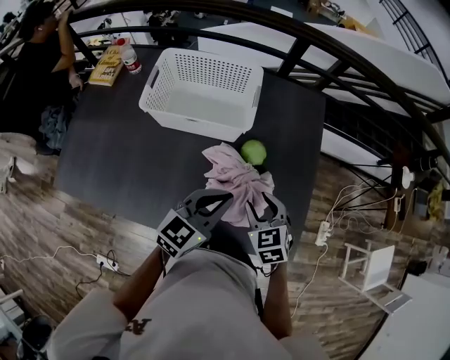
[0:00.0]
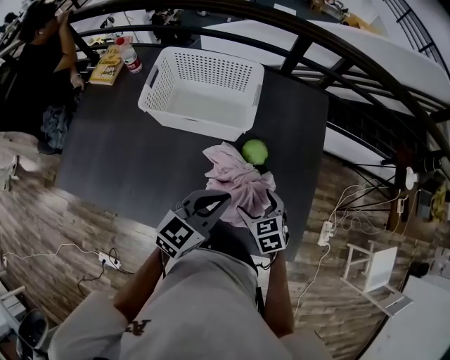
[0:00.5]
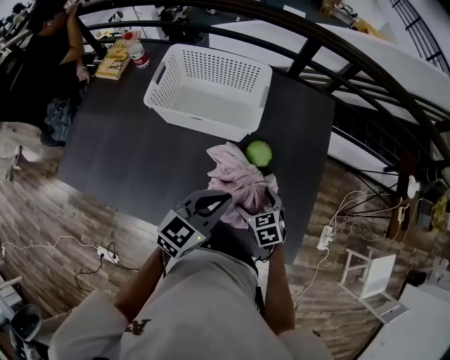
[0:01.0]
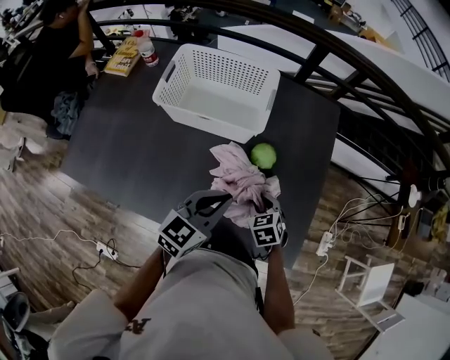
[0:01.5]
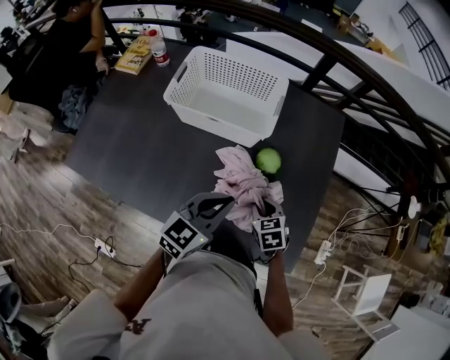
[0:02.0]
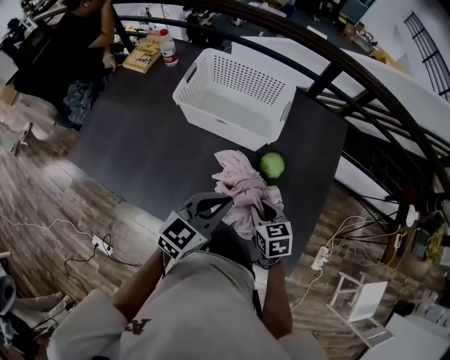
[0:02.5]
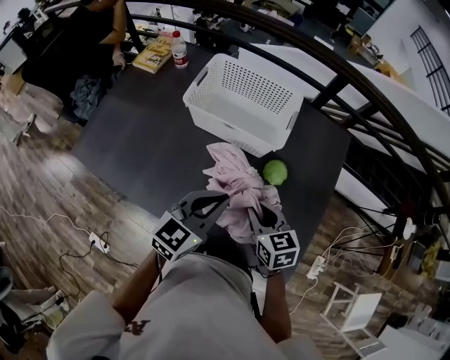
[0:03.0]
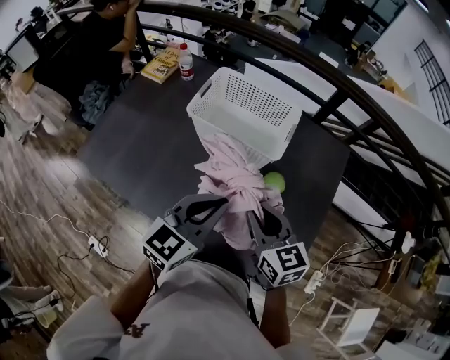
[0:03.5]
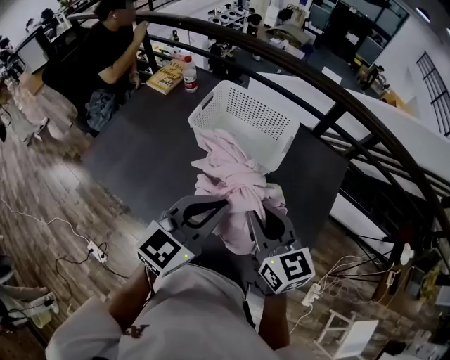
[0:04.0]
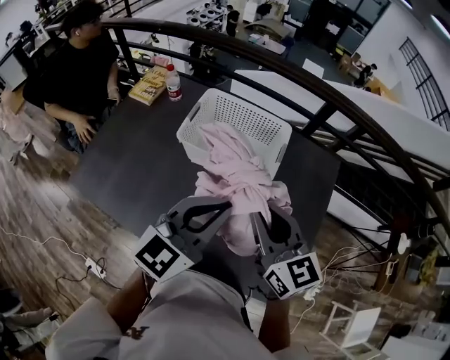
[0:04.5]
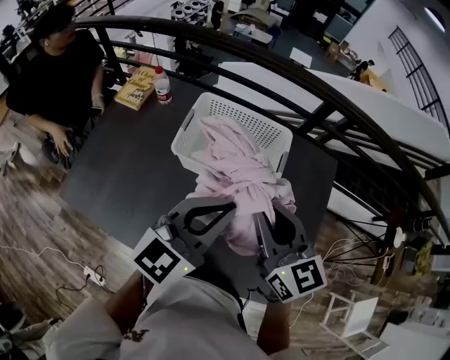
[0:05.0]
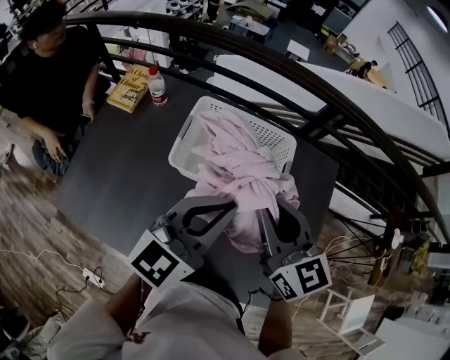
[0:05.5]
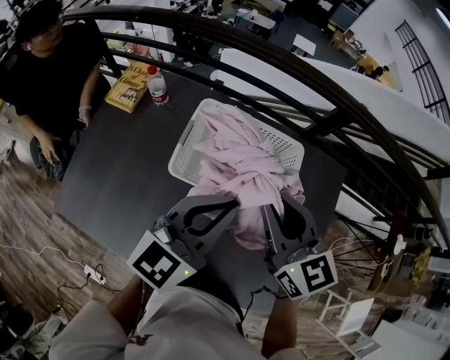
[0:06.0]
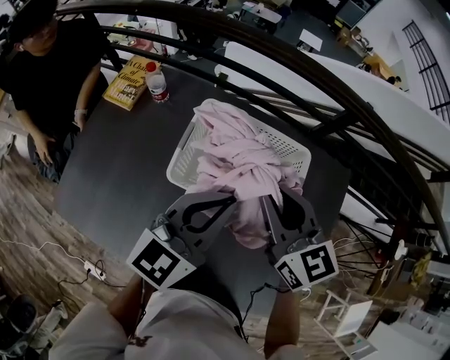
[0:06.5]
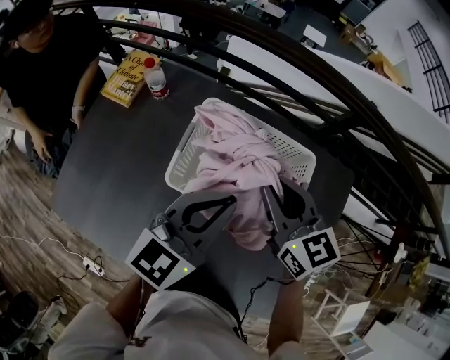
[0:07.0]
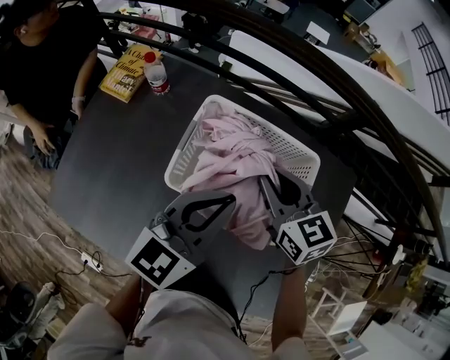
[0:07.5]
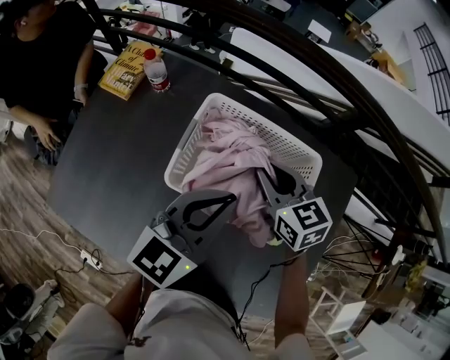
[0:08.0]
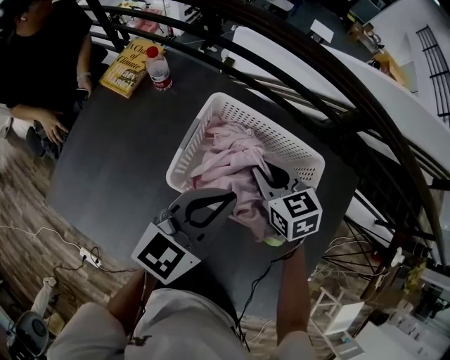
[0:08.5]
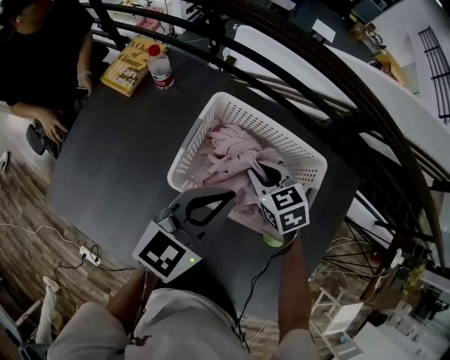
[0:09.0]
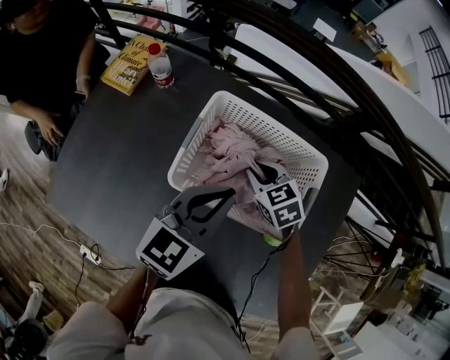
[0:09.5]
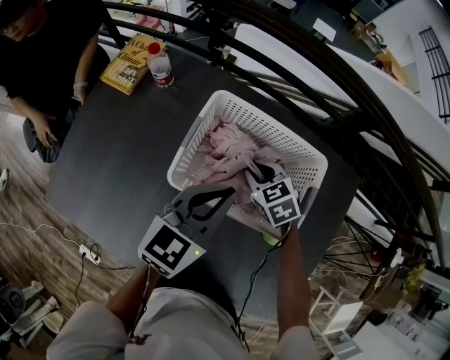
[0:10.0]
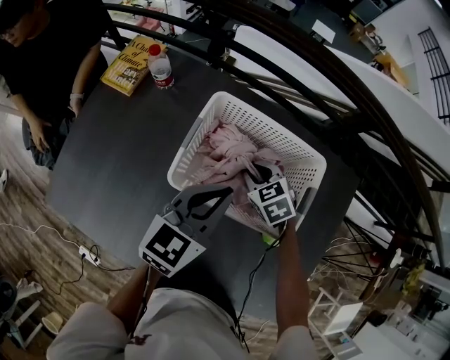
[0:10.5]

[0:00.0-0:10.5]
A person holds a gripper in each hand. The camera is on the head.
0:00.0 to 0:02.0: The right gripper shifts approximately 10 cm downward, and opens, then closes again.
0:02.0 to 0:04.0: The right gripper goes approximately 25 cm upward, and tilts its fingers approximately 40 degrees upward, while the left gripper shifts approximately 15 cm upward.
0:04.0 to 0:06.5: Both grippers move forward, some 25 cm.
0:06.5 to 0:08.5: The right gripper shifts approximately 20 cm downward and forward, and rotates some 20 degrees; the left gripper moves downward, approximately 5 cm.
0:08.5 to 0:10.5: The right gripper is displaced downward by some 10 cm.

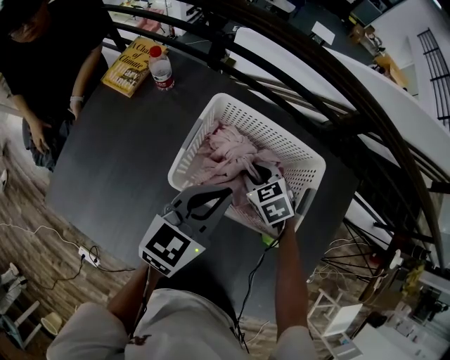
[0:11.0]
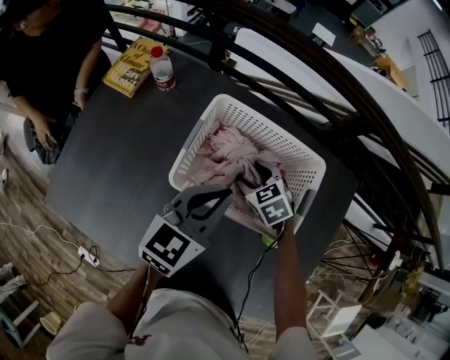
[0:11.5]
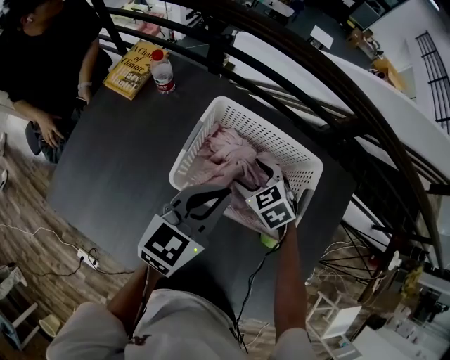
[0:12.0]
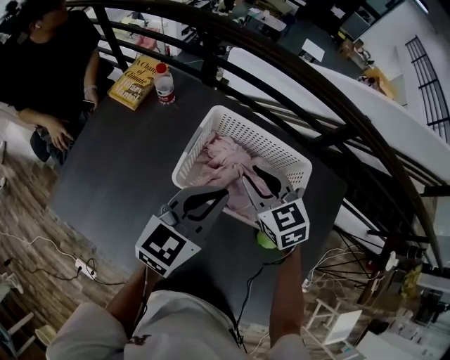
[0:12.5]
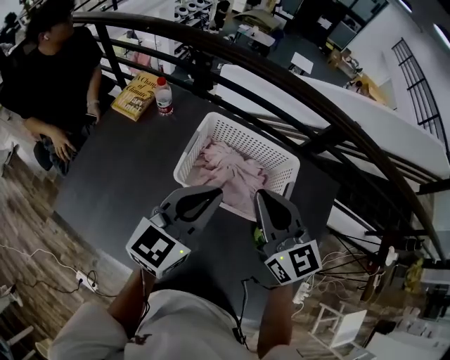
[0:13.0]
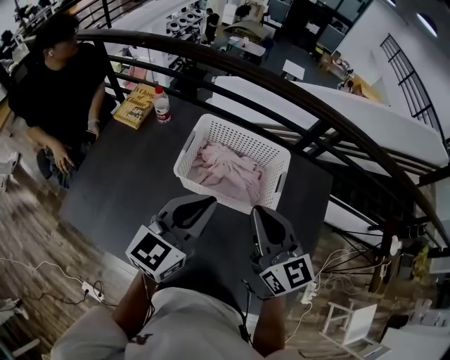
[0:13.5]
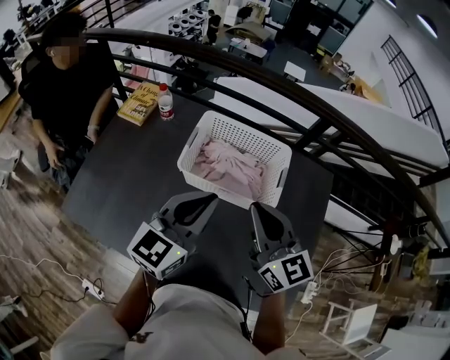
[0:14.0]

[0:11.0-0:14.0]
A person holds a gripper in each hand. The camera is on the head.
0:11.0 to 0:12.5: The left gripper shifts roughly 5 cm upward. Meanwhile the right gripper travels upward by about 15 cm, changes its angle by roughly 20 degrees, and opens, then closes once more.
0:12.5 to 0:14.0: The left gripper goes approximately 15 cm backward and upward. The right gripper shifts approximately 25 cm backward and upward, and points its fingers roughly 30 degrees further upward.

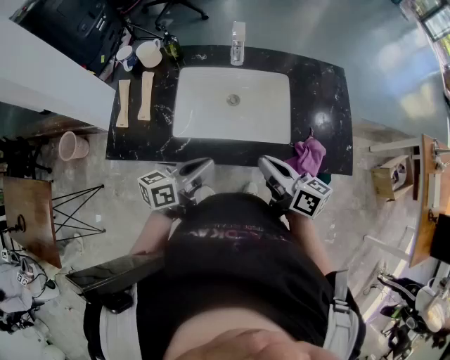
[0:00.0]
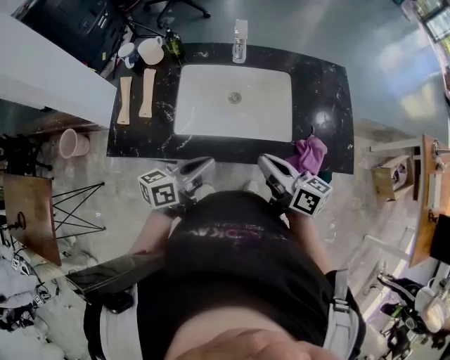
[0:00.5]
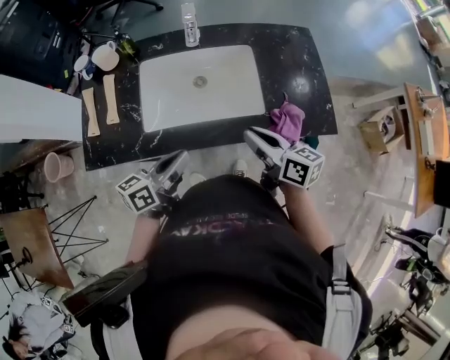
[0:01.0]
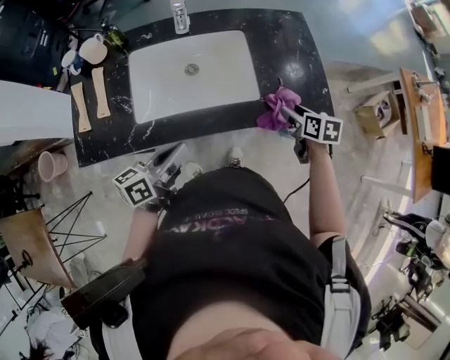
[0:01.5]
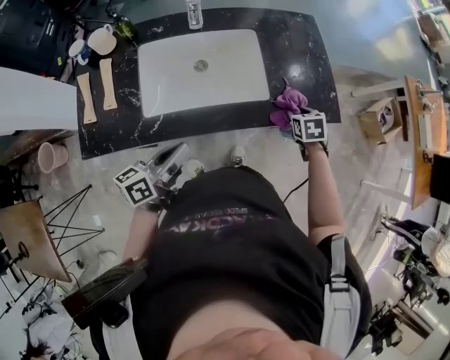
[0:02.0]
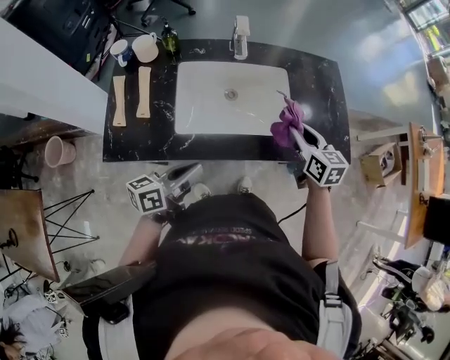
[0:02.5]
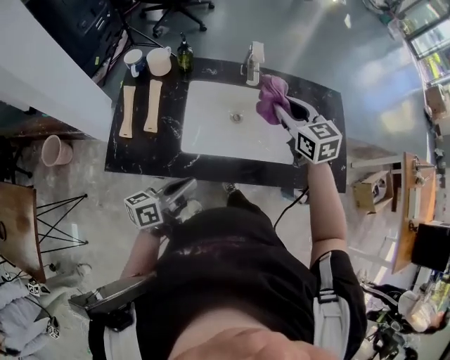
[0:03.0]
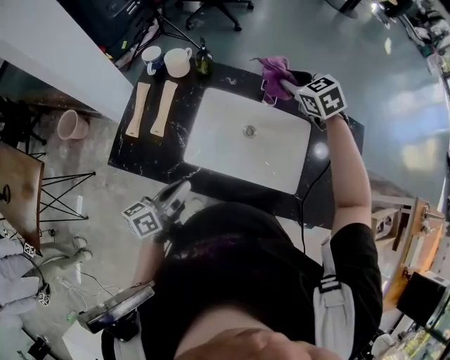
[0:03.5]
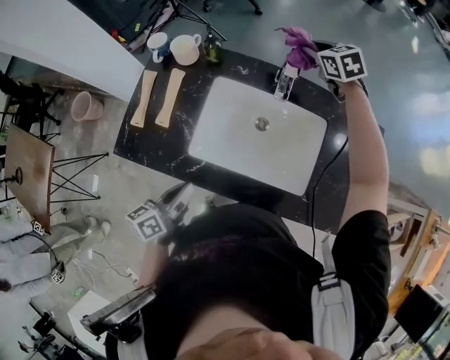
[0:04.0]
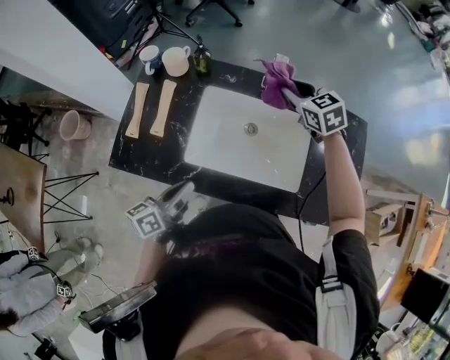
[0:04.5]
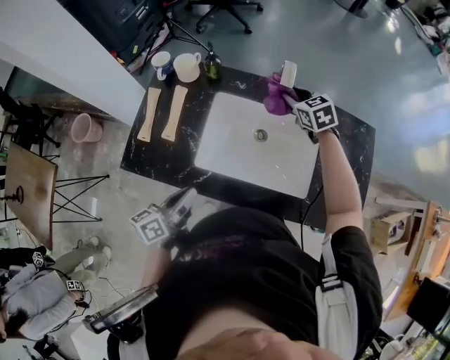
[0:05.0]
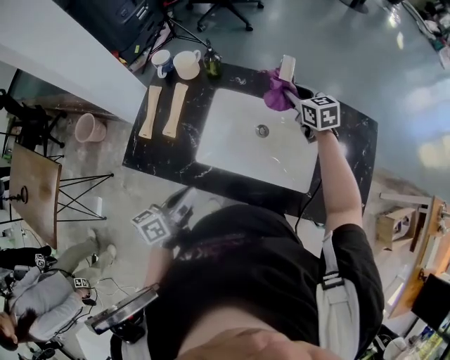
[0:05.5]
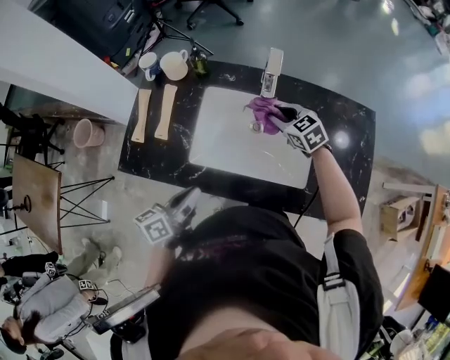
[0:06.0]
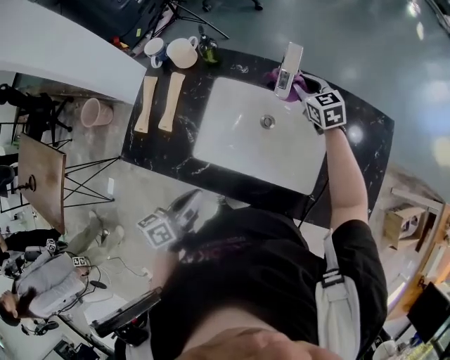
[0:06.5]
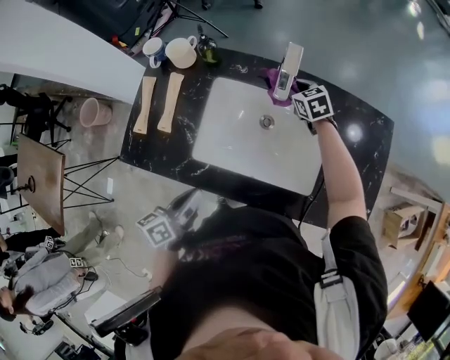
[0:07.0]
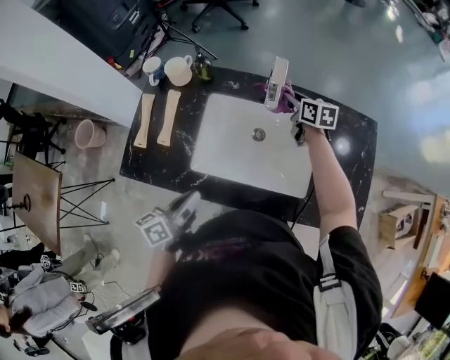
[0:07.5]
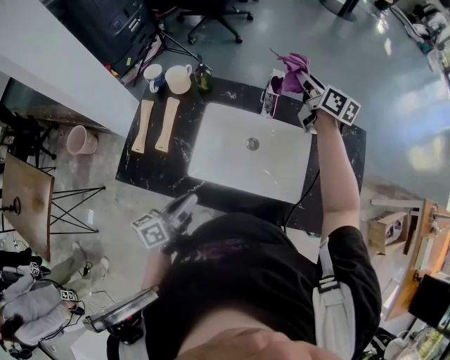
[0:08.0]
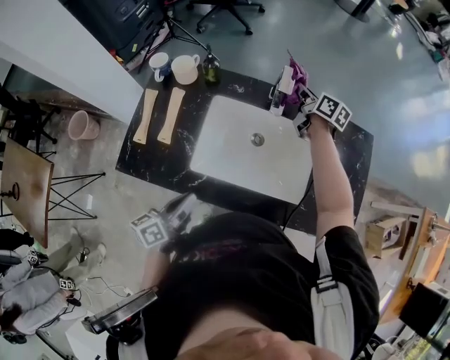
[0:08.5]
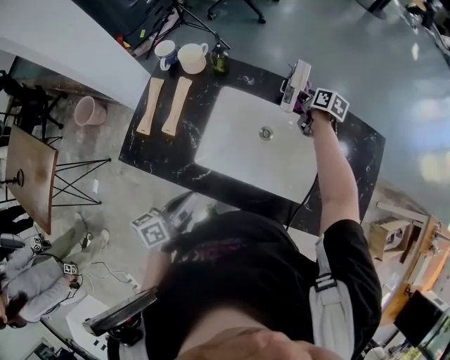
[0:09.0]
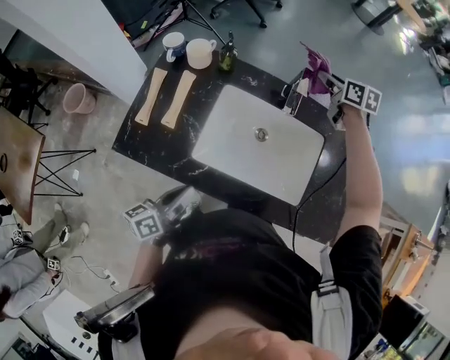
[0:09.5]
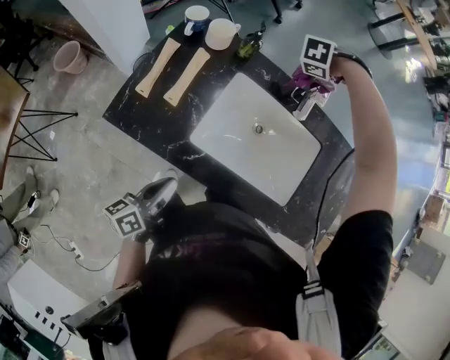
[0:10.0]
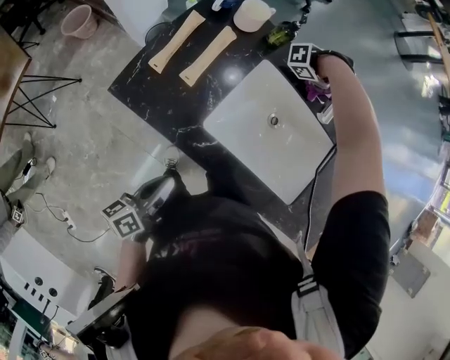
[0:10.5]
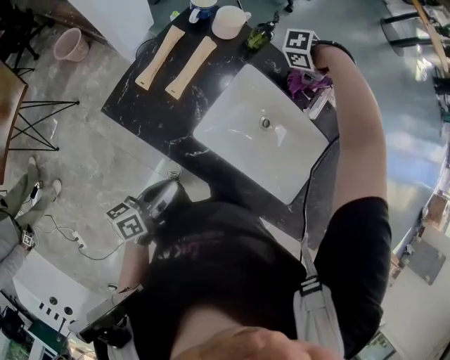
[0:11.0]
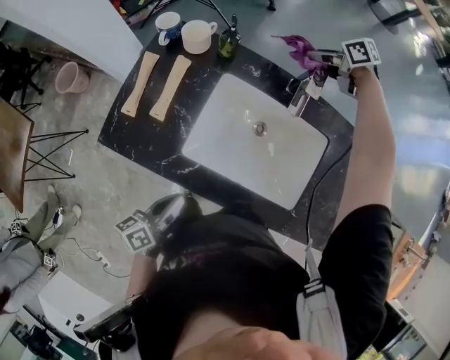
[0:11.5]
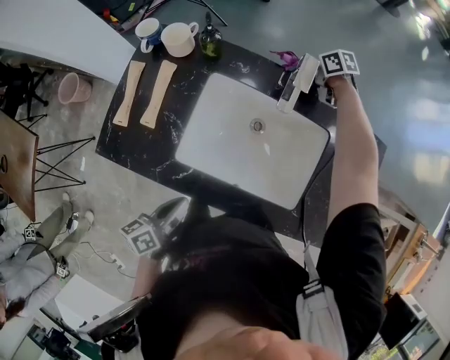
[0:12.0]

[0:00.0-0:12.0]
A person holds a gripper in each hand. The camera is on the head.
0:00.0 to 0:02.0: The right gripper changes place by approximately 30 cm, tips its fingers downward by approximately 50 degrees, and opens its fingers.
0:02.0 to 0:04.0: The right gripper ends up roughly 60 cm from where it was, and changes its angle by some 50 degrees, while the left gripper changes place by about 10 cm, and changes its angle by about 30 degrees.
0:04.0 to 0:06.0: The right gripper shifts approximately 25 cm backward and downward.
0:06.0 to 0:08.0: The right gripper heads upward, forward and to the right, covering approximately 25 cm, and turns by roughly 50 degrees.
0:08.0 to 0:10.0: The right gripper swings up and down, roughly 25 cm each way, with 2 reversals, and tips its fingers downward by some 60 degrees. Meanwhile the left gripper changes place by approximately 10 cm.
0:10.0 to 0:12.0: The right gripper goes up and down, about 15 cm each way, reversing 2 times, and turns by approximately 90 degrees. Meanwhile the left gripper ends up some 10 cm from where it was.

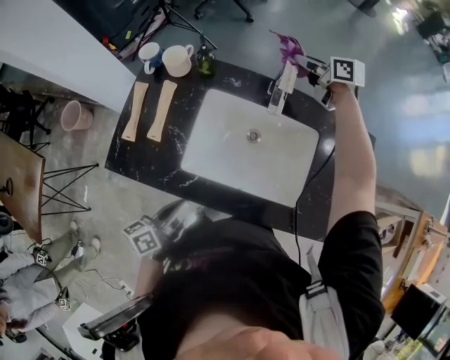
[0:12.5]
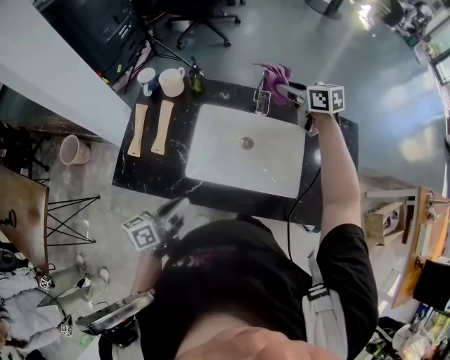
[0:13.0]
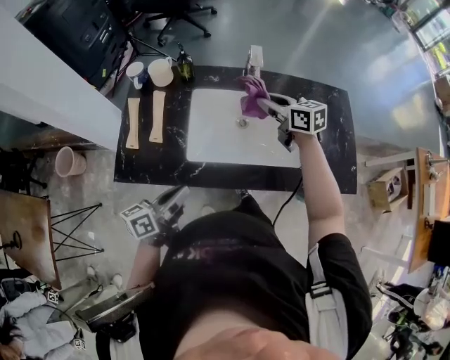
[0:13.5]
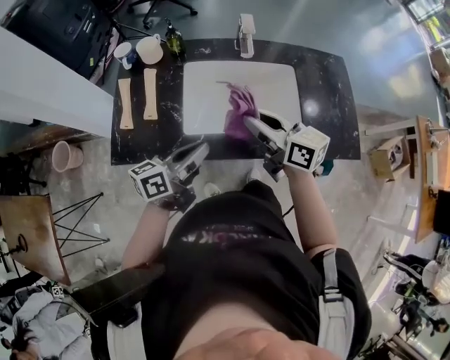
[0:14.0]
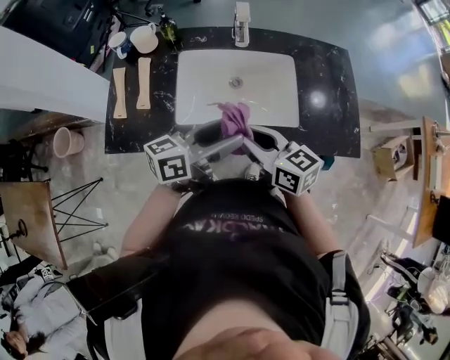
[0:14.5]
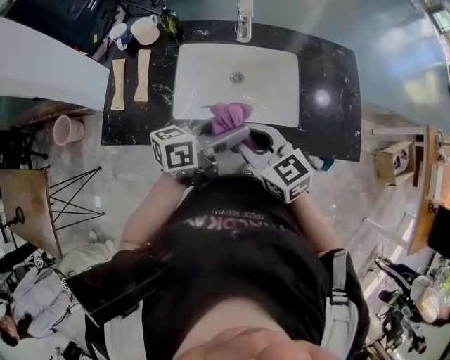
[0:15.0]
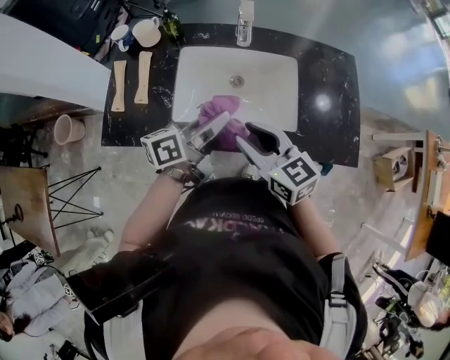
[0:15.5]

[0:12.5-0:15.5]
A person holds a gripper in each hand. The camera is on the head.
0:12.5 to 0:14.0: The right gripper goes some 40 cm backward, and turns by some 20 degrees, while the left gripper goes approximately 5 cm upward, and changes its angle by about 30 degrees.
0:14.0 to 0:15.5: The right gripper travels backward by approximately 5 cm, and rotates about 20 degrees. The left gripper goes approximately 10 cm to the right and forward, and opens, then closes once more.
